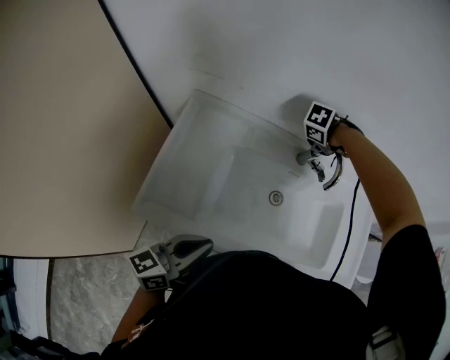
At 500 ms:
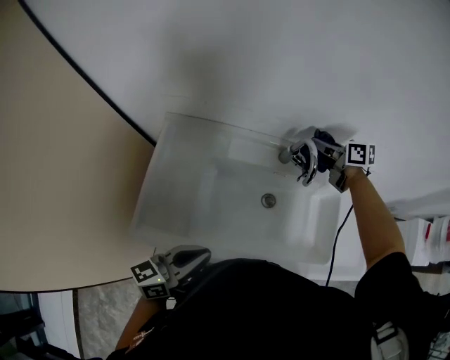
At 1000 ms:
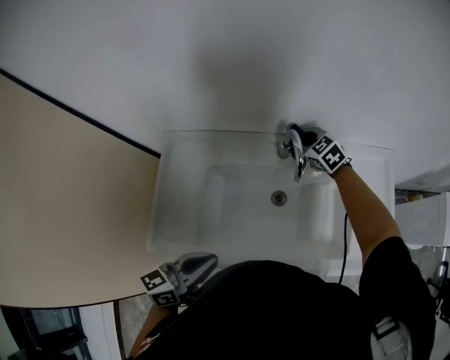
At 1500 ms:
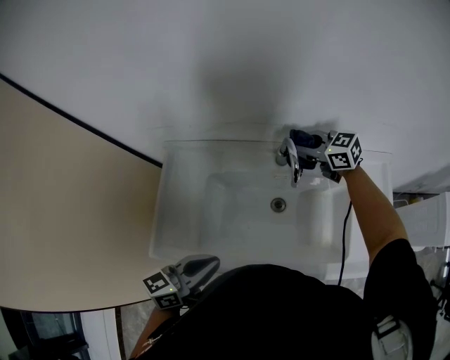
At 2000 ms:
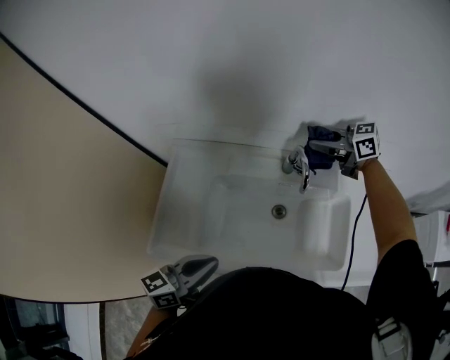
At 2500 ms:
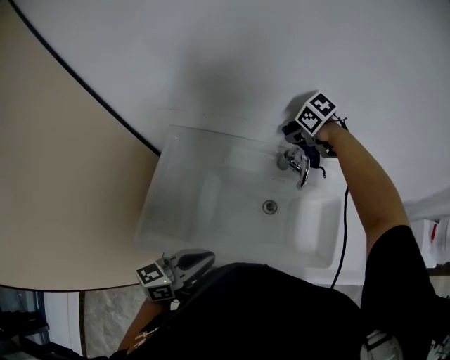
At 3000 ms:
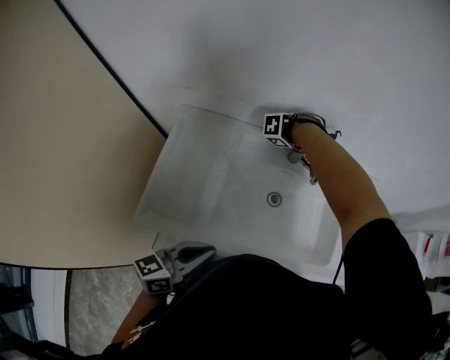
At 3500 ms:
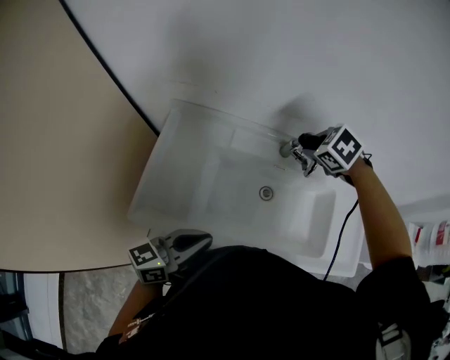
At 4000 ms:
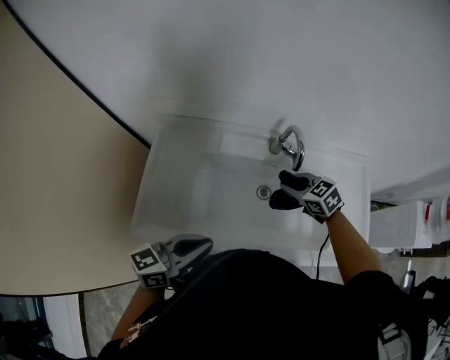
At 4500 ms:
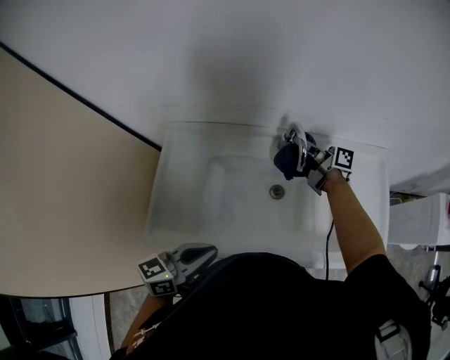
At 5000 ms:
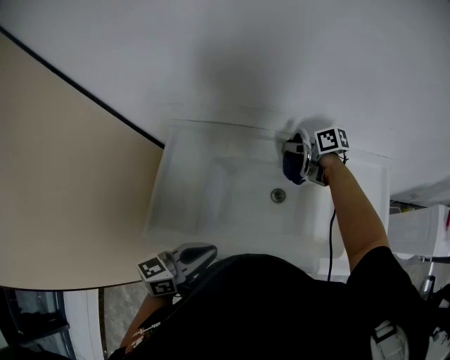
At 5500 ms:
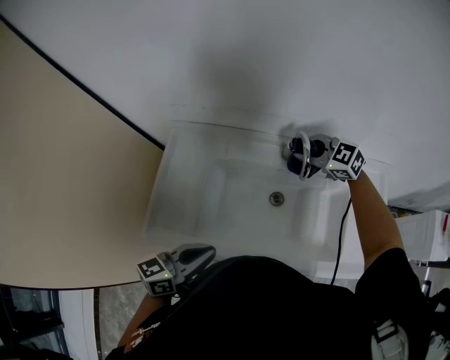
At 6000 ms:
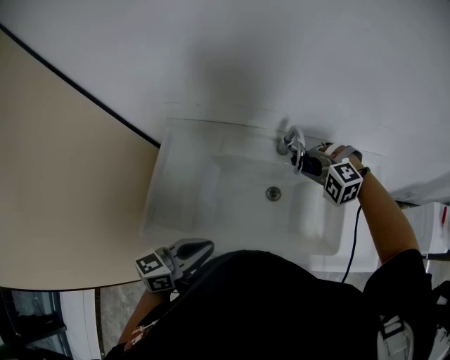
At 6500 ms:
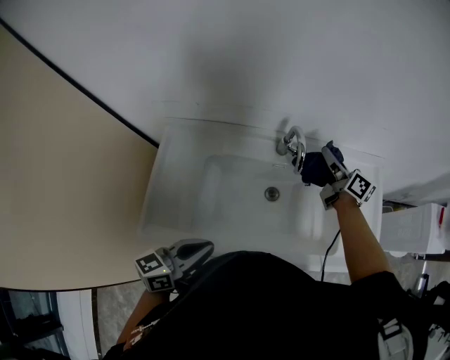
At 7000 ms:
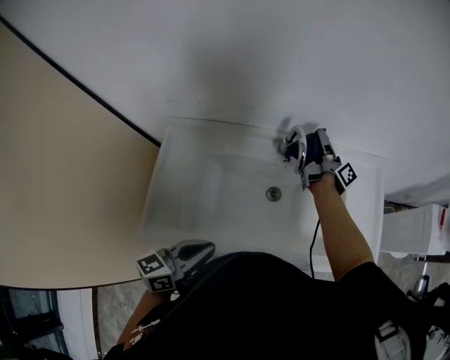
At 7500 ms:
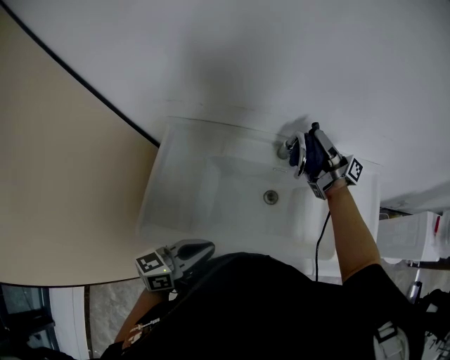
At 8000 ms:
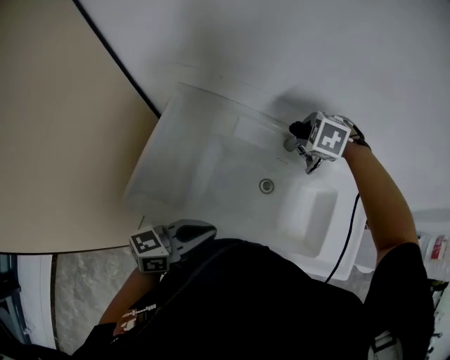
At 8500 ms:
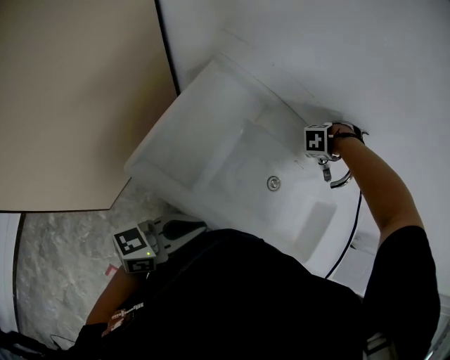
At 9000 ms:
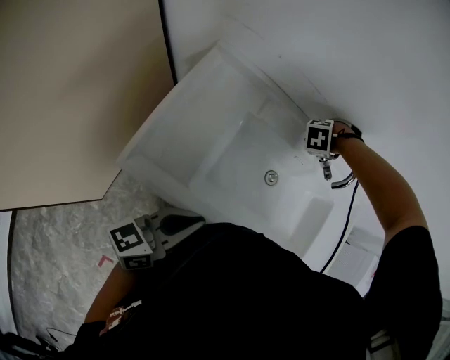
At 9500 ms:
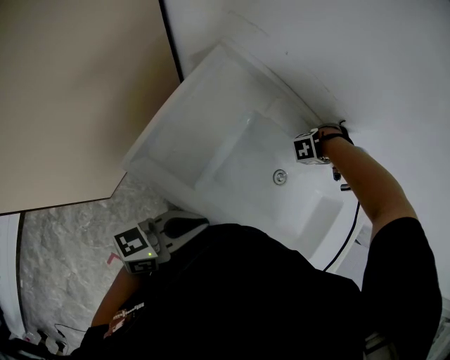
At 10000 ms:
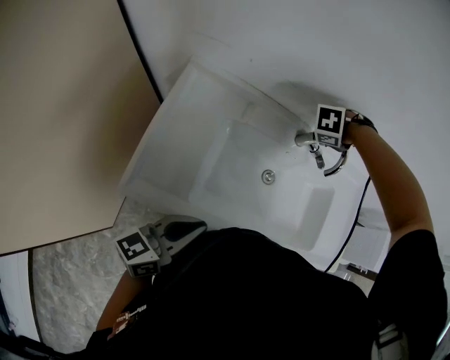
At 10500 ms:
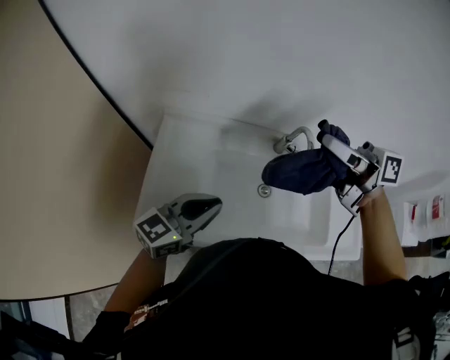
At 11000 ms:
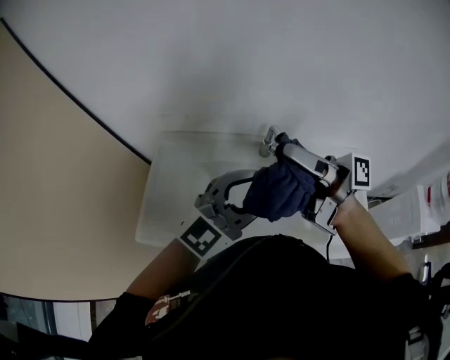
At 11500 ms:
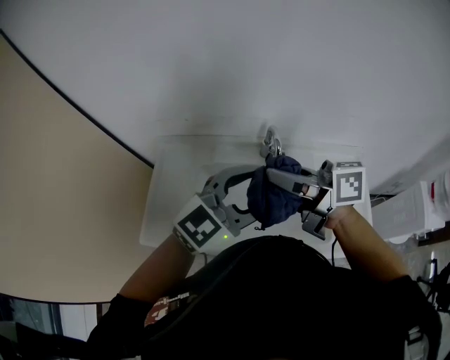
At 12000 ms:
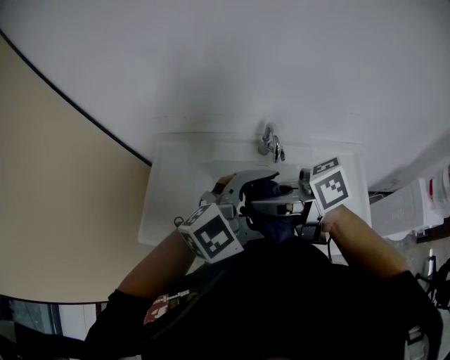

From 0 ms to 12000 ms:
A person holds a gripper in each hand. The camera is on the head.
From 0 ms to 2000 ms: The left gripper moves roughly 10 cm. The right gripper swings up and down, approximately 15 cm each way, with 2 reversals, and tilts its fingers approximately 60 degrees upward.
From 2000 ms to 4000 ms: The right gripper moves up and down over approximately 15 cm, changing direction 2 times, and rotates roughly 30 degrees.
From 4000 ms to 6000 ms: The right gripper goes forward and returns, some 15 cm each way, and rotates around the line of its fingers by some 60 degrees, counterclockwise from behind.
From 6000 ms to 8000 ms: The right gripper moves some 10 cm upward and comes back, and swivels about 30 degrees.
From 8000 ms to 10000 ms: The left gripper ends up some 10 cm from where it was. Meanwhile the right gripper travels downward and back again, roughly 20 cm each way, and rotates approximately 40 degrees.
From 10000 ms to 12000 ms: The left gripper changes place by approximately 40 cm, rolls clockwise, seen from behind, by about 70 degrees, and opens. Meanwhile the right gripper moves approximately 40 cm, and tilts its fingers roughly 60 degrees upward.

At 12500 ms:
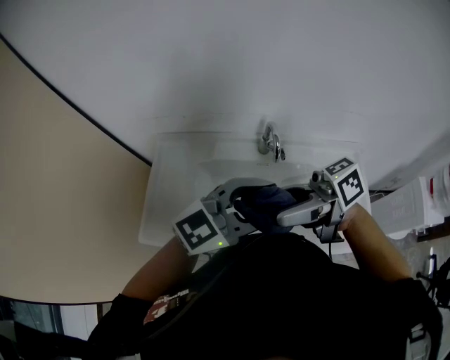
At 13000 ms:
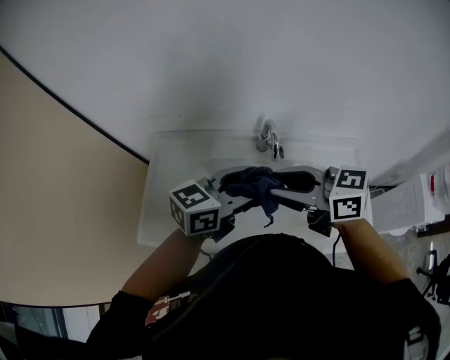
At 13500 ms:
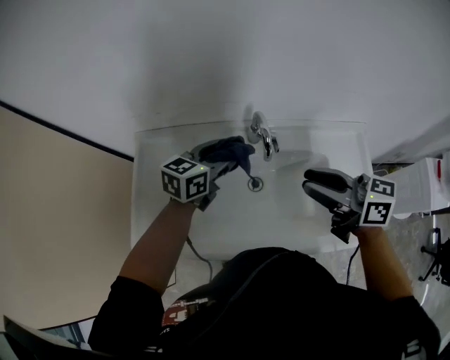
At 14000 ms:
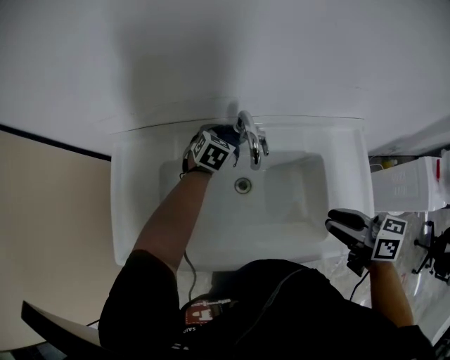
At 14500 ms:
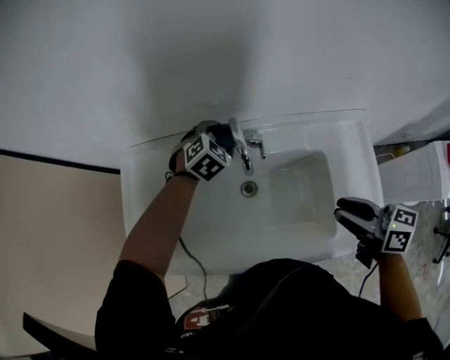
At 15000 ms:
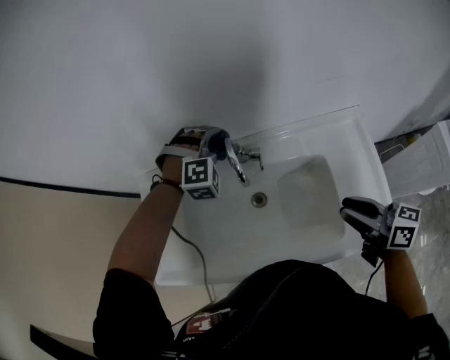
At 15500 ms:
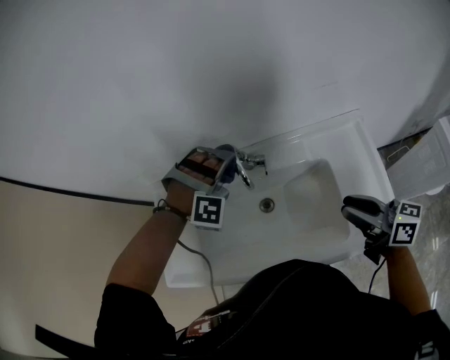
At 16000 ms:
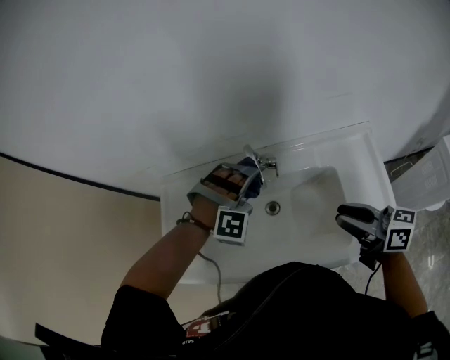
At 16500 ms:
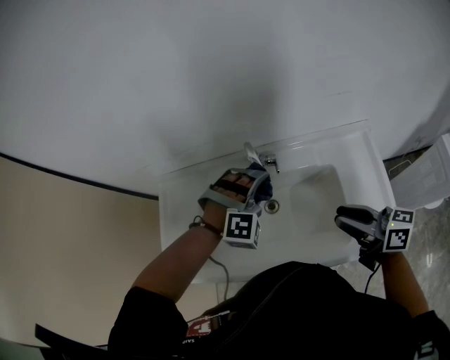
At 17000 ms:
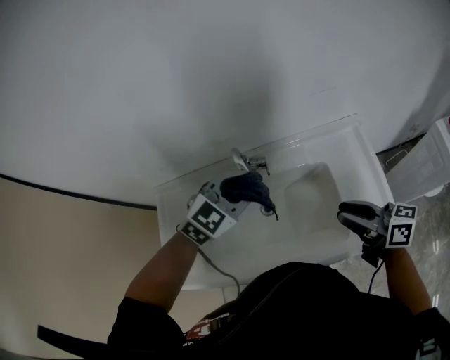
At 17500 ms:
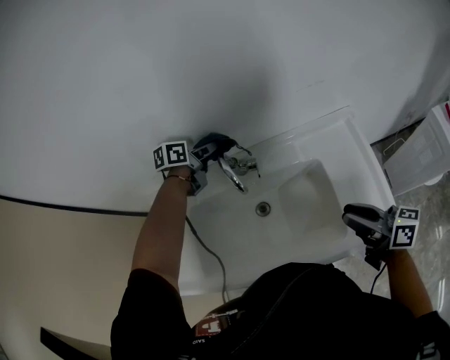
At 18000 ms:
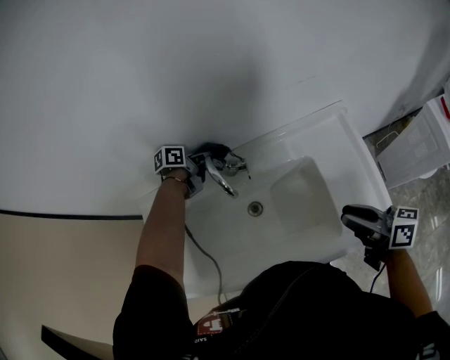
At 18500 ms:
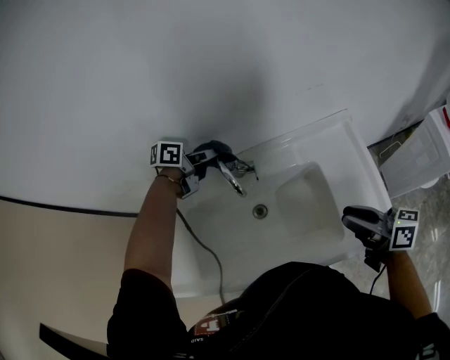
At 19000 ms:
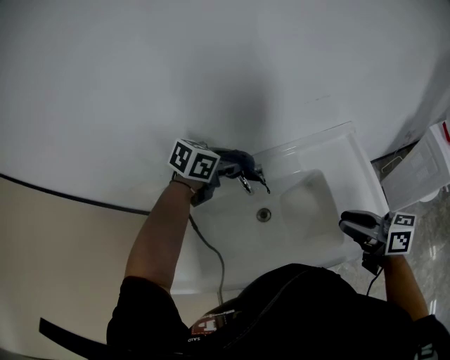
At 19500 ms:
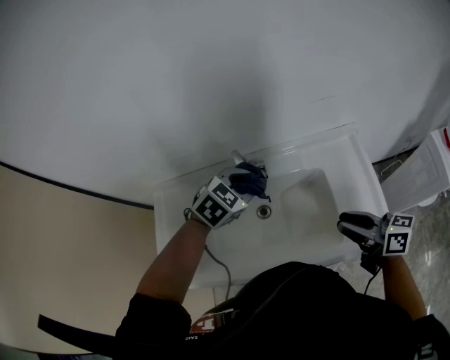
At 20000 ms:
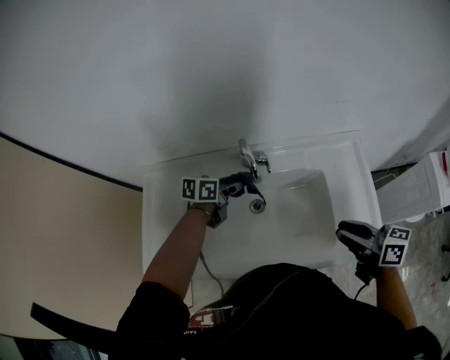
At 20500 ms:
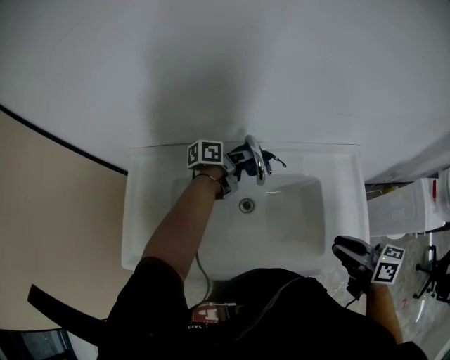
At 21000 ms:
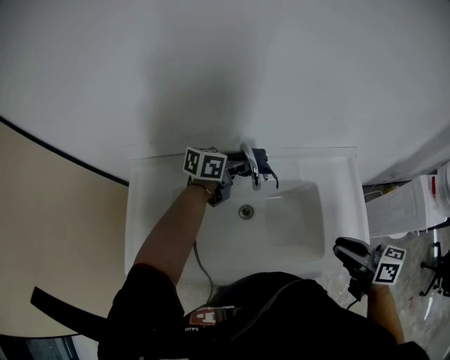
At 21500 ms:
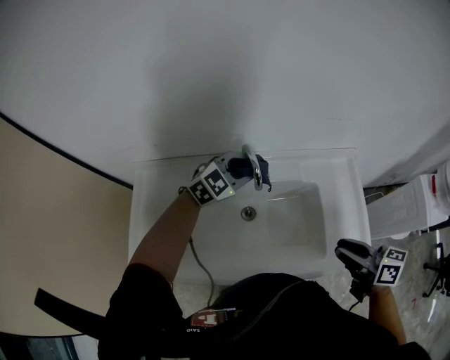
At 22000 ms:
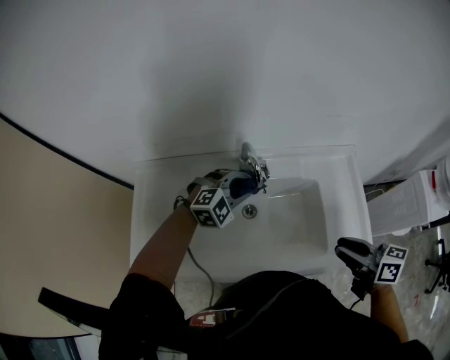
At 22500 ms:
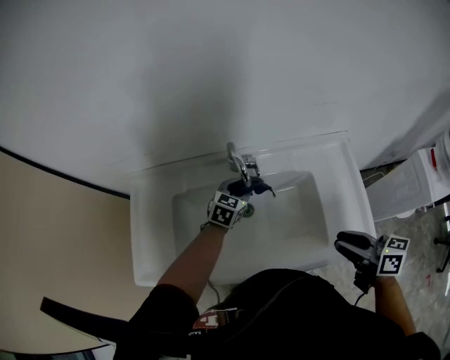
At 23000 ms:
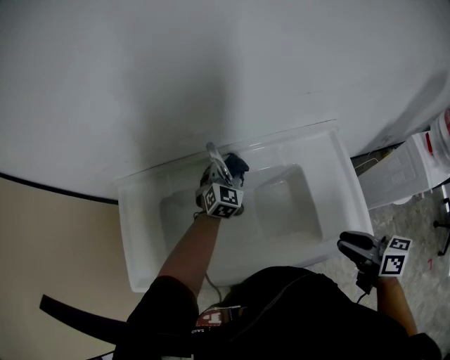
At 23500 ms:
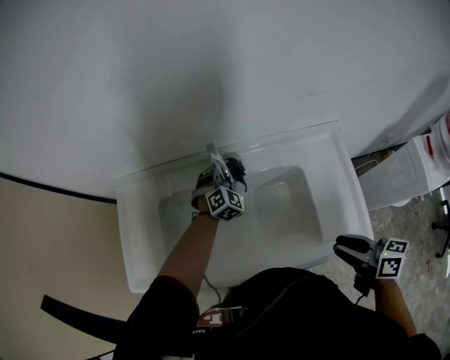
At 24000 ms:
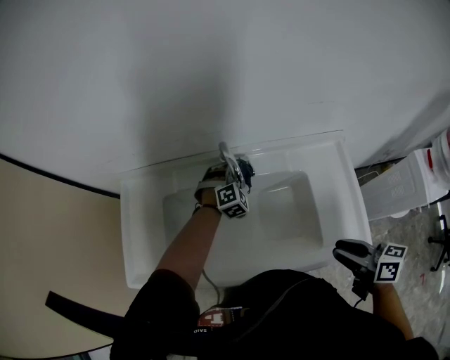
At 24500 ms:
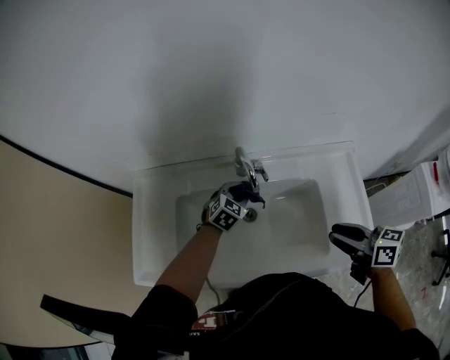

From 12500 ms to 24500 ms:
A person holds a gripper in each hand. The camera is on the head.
From 12500 ms to 14500 ms: The right gripper moves about 30 cm, turns by about 50 degrees, and closes up; the left gripper ends up some 40 cm from where it was, and tilts its fingers about 50 degrees downward.
From 14500 ms to 16500 ms: The left gripper goes some 20 cm backward and upward, and rotates around the line of its fingers by about 50 degrees, clockwise from behind.
From 16500 ms to 18500 ms: The right gripper ends up roughly 5 cm from where it was; the left gripper goes up and down, roughly 15 cm each way, reversing 2 times, and rolls counterclockwise, seen from behind, by about 110 degrees.
From 18500 ms to 20500 ms: The left gripper goes some 5 cm downward, and turns by some 30 degrees.
From 20500 ms to 22500 ms: The left gripper goes some 10 cm backward, and rolls clockwise, seen from behind, by some 60 degrees.
From 22500 ms to 24500 ms: The right gripper goes some 5 cm forward.

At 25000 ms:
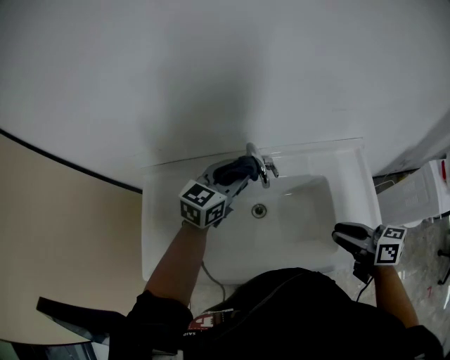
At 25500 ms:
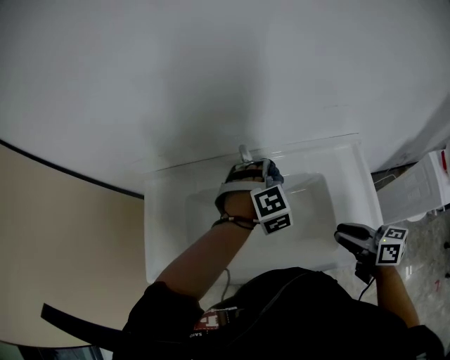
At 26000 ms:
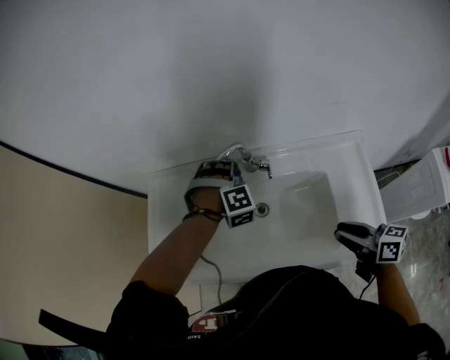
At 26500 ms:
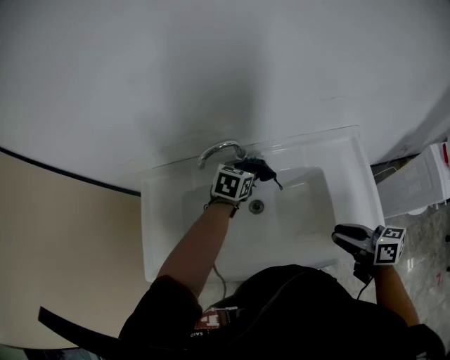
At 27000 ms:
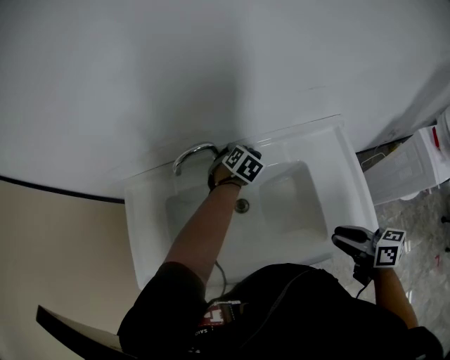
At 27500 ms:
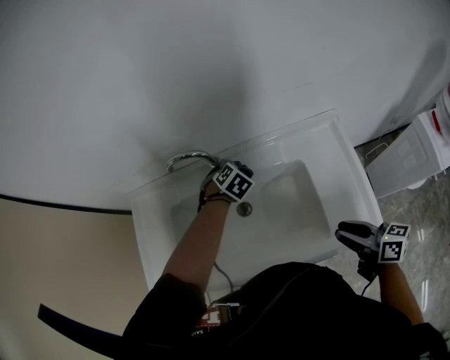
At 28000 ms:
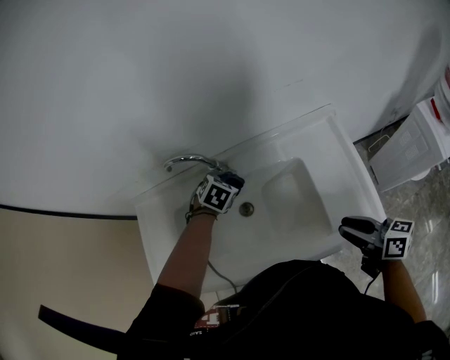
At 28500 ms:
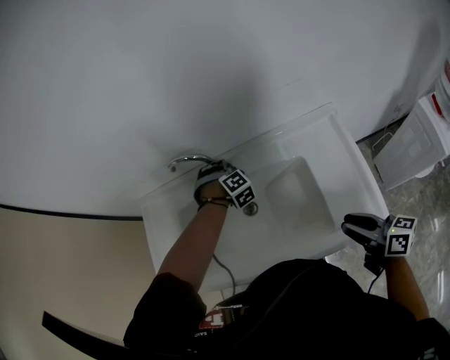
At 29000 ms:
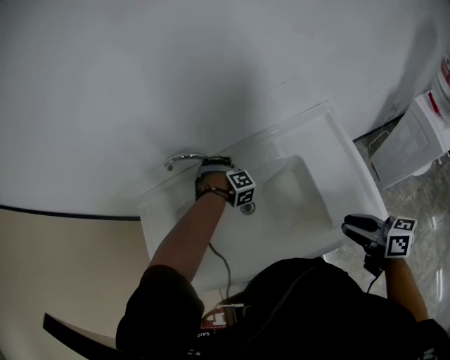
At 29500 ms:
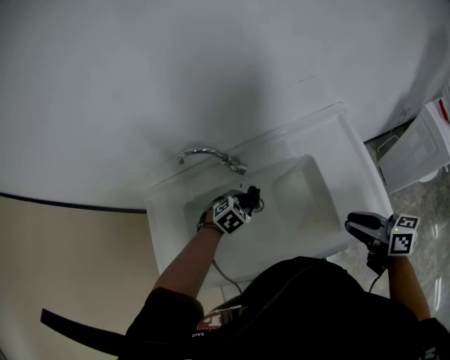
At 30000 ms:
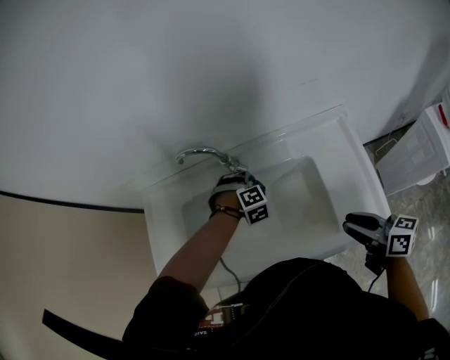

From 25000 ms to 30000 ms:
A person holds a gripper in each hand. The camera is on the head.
From 25000 ms to 27500 ms: The left gripper moves downward, some 20 cm, and tips its fingers downward by some 40 degrees. Meanwhile the right gripper changes place by about 10 cm.
From 27500 ms to 30000 ms: The left gripper swivels approximately 40 degrees.
